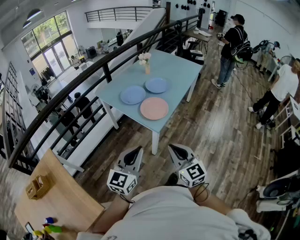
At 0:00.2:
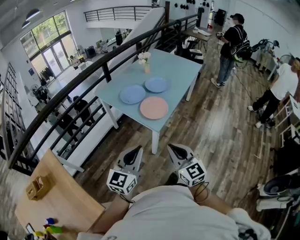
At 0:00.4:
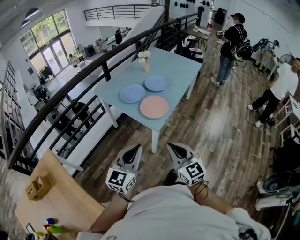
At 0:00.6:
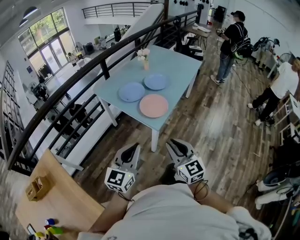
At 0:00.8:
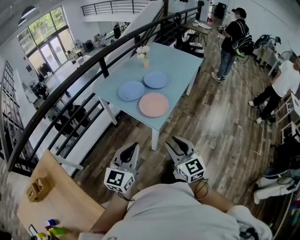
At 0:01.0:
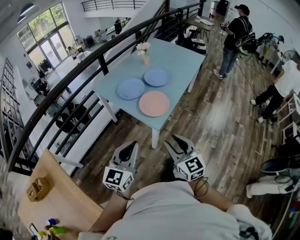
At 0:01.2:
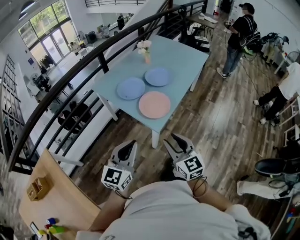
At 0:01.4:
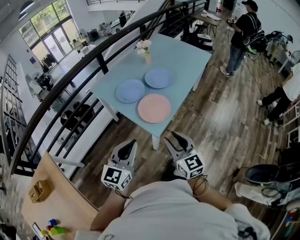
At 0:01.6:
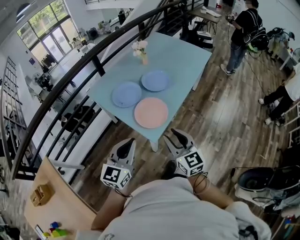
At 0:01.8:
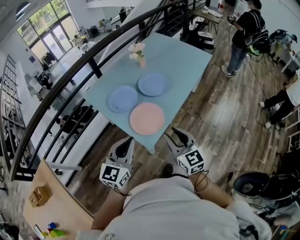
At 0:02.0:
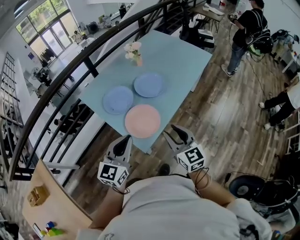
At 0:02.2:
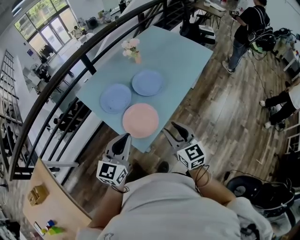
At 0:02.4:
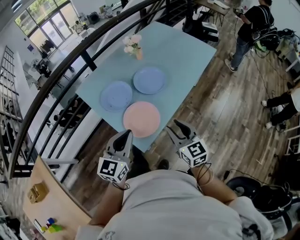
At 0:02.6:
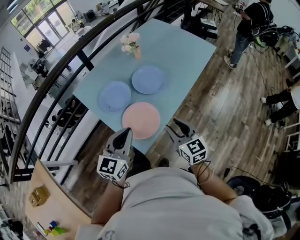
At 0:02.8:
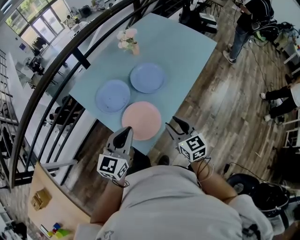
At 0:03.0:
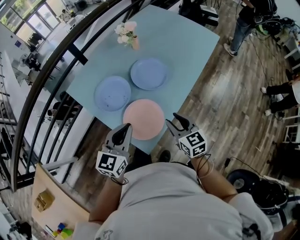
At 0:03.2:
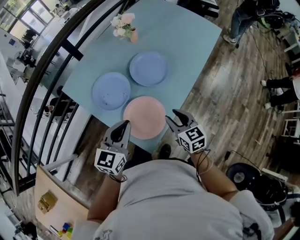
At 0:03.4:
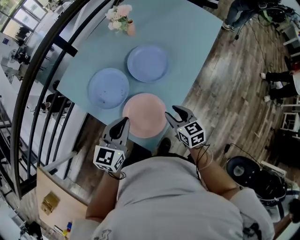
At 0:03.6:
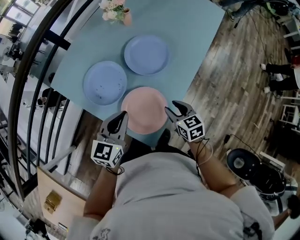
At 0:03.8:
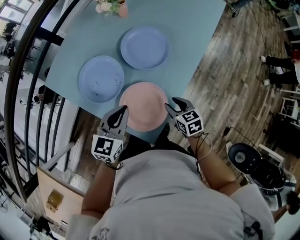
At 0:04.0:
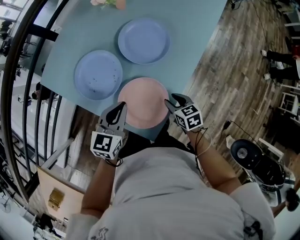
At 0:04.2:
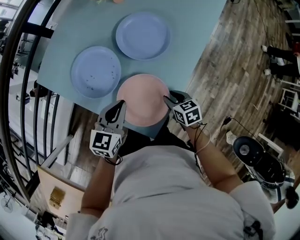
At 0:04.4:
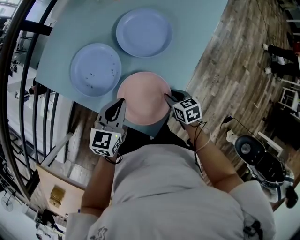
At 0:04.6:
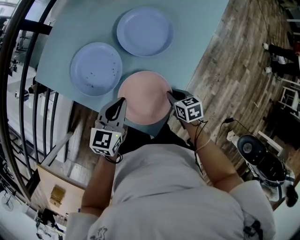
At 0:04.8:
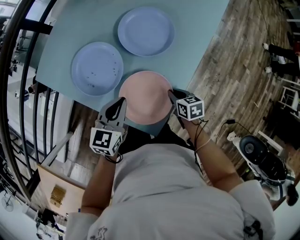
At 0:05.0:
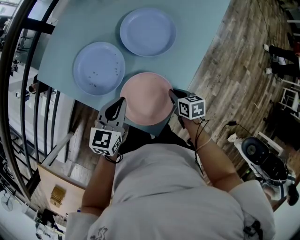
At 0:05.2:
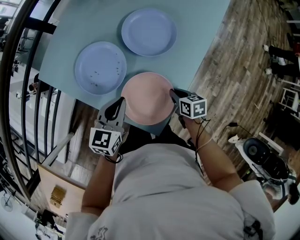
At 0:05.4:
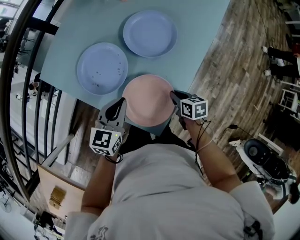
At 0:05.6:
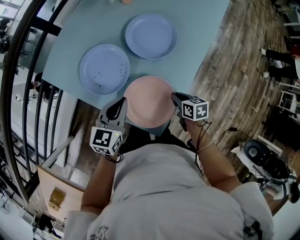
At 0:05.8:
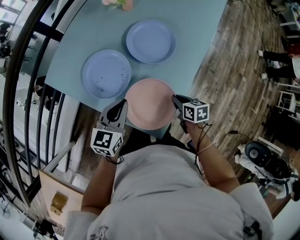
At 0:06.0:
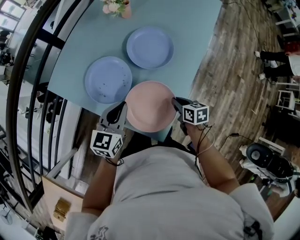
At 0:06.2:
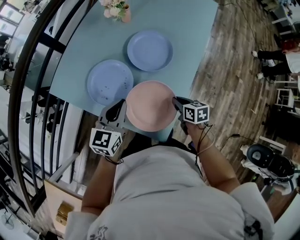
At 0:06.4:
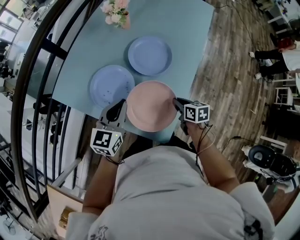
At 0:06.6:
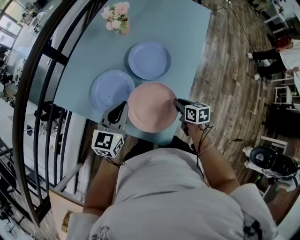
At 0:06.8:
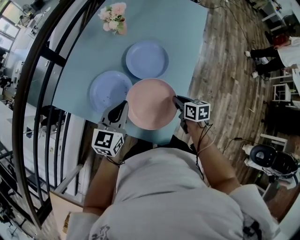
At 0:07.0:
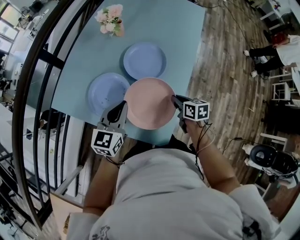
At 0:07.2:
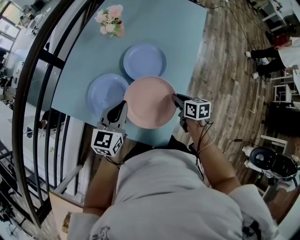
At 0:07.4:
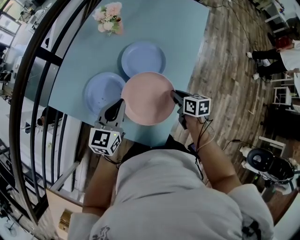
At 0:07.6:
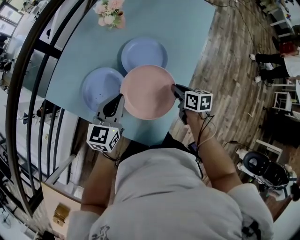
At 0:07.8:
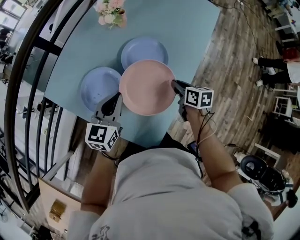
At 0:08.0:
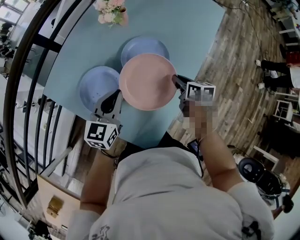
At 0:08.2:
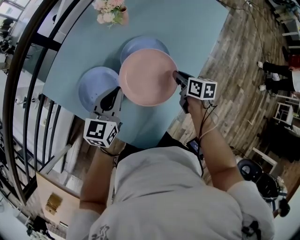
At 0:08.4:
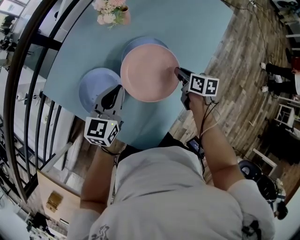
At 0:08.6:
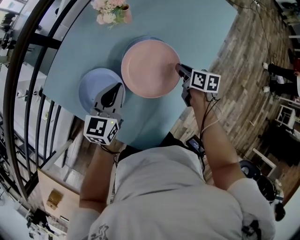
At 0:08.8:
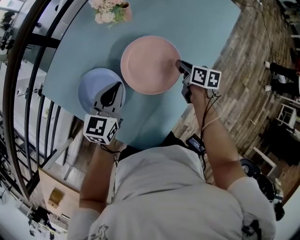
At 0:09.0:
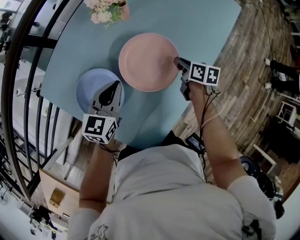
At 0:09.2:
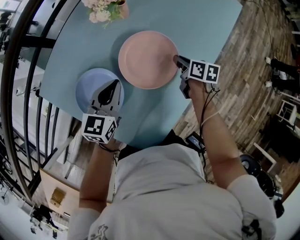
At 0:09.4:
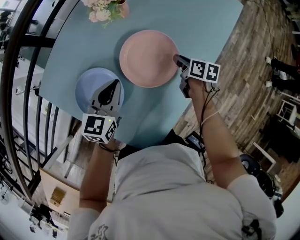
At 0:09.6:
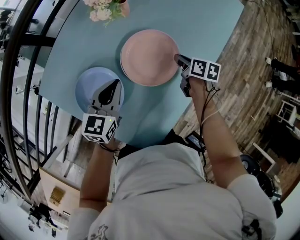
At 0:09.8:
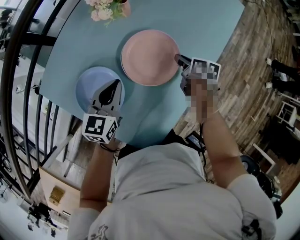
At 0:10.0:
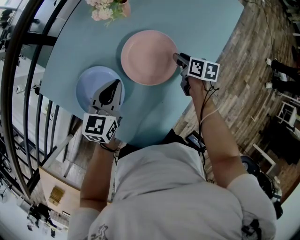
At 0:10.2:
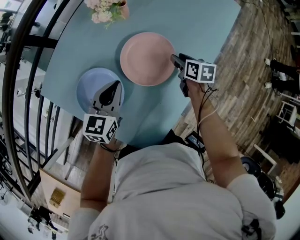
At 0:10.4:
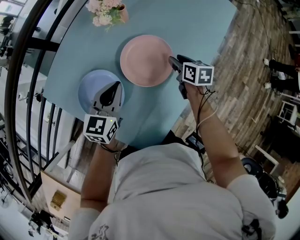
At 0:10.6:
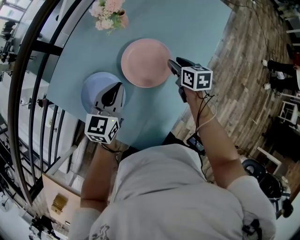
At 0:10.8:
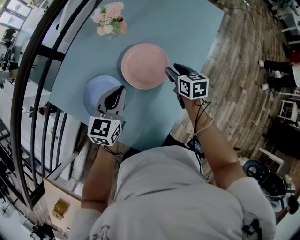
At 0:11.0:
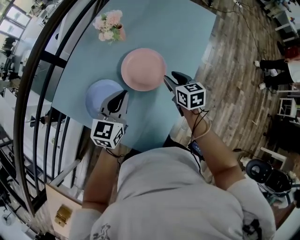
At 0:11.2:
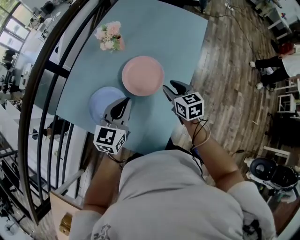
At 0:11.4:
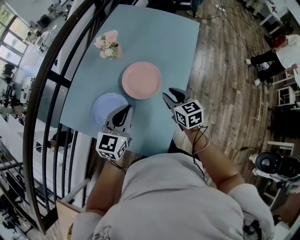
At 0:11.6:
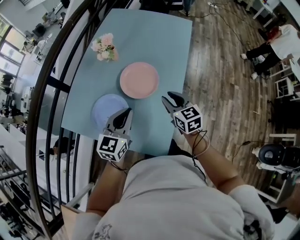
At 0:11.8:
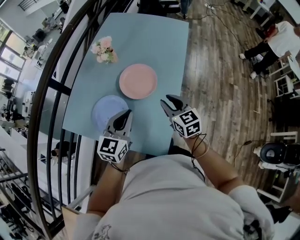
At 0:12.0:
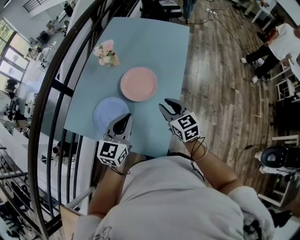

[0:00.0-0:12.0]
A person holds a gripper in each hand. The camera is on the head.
0:00.0 to 0:01.6: Both grippers travel together forward, some 20 cm. The right gripper opens its fingers.
0:01.6 to 0:03.0: The left gripper travels forward by about 25 cm; the right gripper moves forward and downward, roughly 25 cm.
0:03.0 to 0:04.4: The left gripper moves downward and forward, roughly 20 cm, and swivels roughly 20 degrees; the right gripper shifts some 25 cm downward, and turns by roughly 40 degrees.
0:04.4 to 0:06.0: The grippers both shift upward by roughly 5 cm. The right gripper closes up.
0:06.0 to 0:07.6: The right gripper is displaced forward and upward by about 10 cm, while the left gripper travels forward by roughly 5 cm.
0:07.6 to 0:09.0: The right gripper is displaced forward by some 15 cm; the left gripper moves forward and downward, approximately 10 cm.
0:09.0 to 0:10.4: The right gripper opens its fingers.
0:10.4 to 0:12.0: The right gripper travels backward and upward by roughly 30 cm, and swivels roughly 30 degrees. The left gripper is displaced backward and upward by some 20 cm, and changes its angle by approximately 20 degrees.

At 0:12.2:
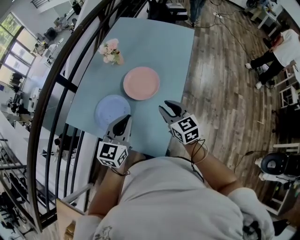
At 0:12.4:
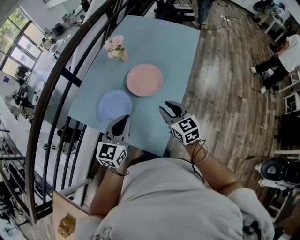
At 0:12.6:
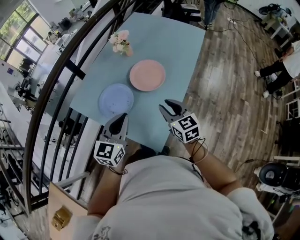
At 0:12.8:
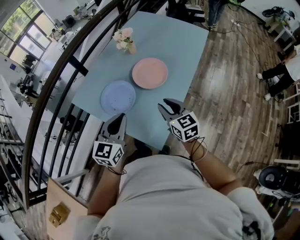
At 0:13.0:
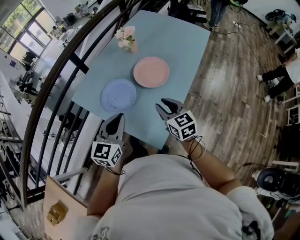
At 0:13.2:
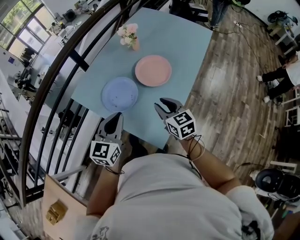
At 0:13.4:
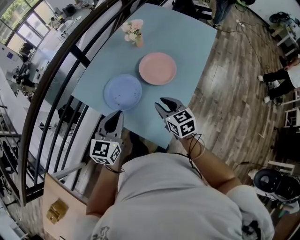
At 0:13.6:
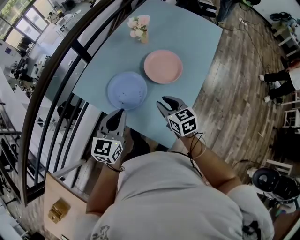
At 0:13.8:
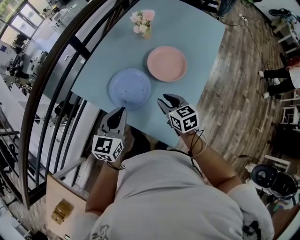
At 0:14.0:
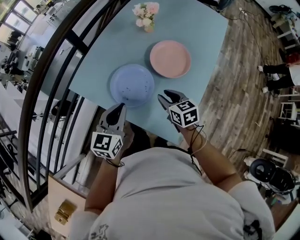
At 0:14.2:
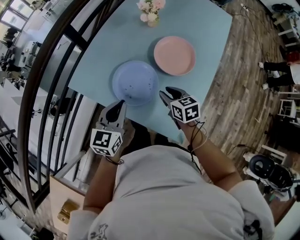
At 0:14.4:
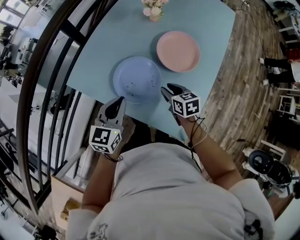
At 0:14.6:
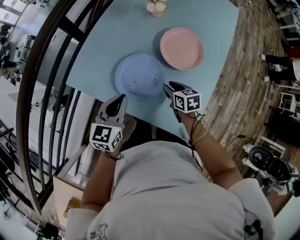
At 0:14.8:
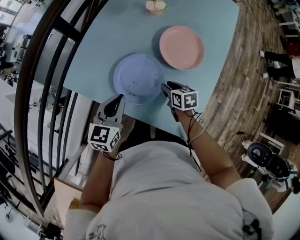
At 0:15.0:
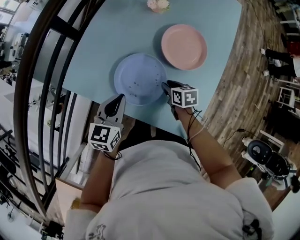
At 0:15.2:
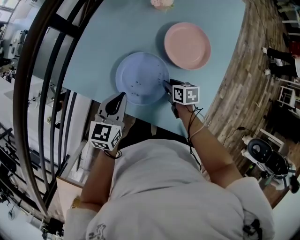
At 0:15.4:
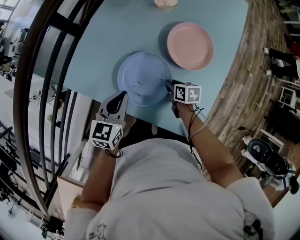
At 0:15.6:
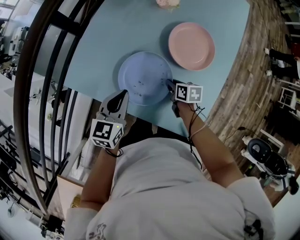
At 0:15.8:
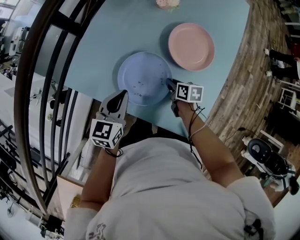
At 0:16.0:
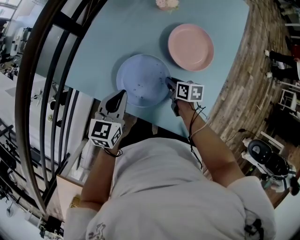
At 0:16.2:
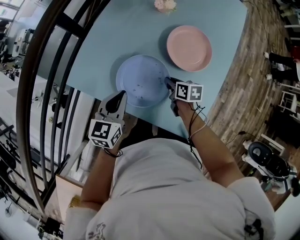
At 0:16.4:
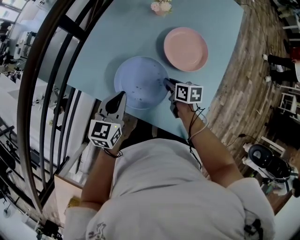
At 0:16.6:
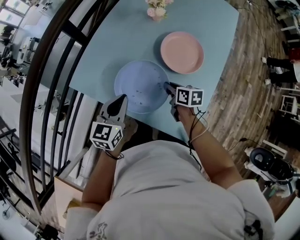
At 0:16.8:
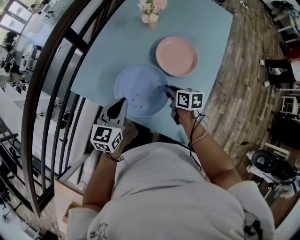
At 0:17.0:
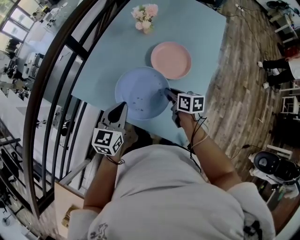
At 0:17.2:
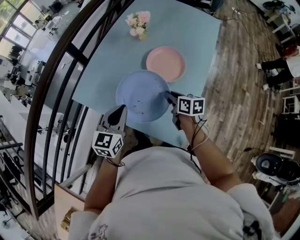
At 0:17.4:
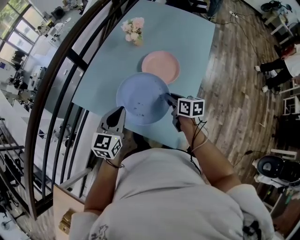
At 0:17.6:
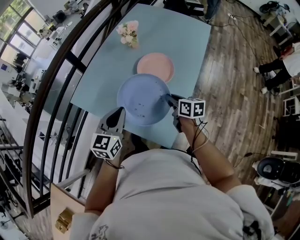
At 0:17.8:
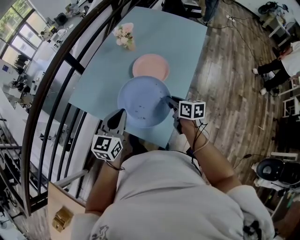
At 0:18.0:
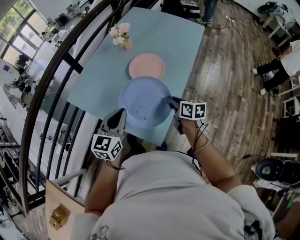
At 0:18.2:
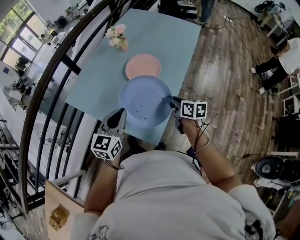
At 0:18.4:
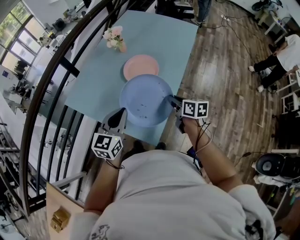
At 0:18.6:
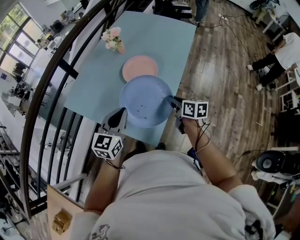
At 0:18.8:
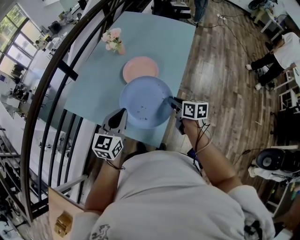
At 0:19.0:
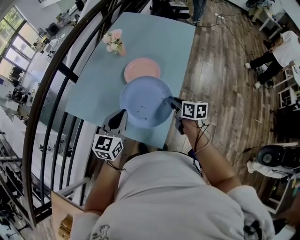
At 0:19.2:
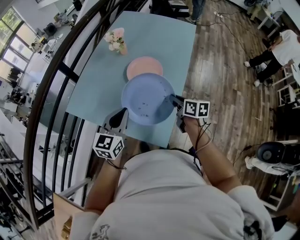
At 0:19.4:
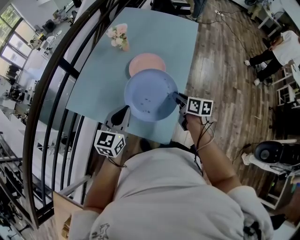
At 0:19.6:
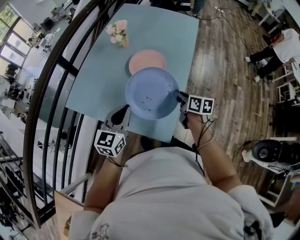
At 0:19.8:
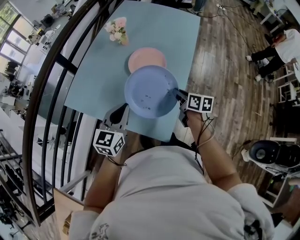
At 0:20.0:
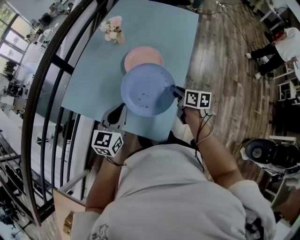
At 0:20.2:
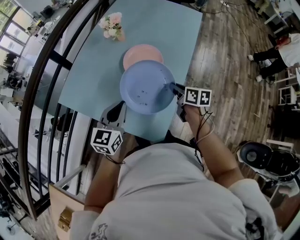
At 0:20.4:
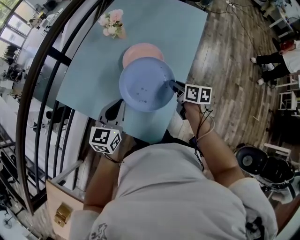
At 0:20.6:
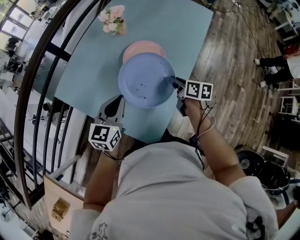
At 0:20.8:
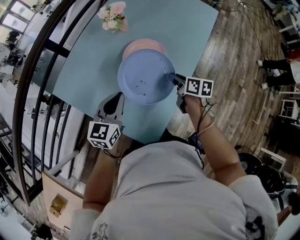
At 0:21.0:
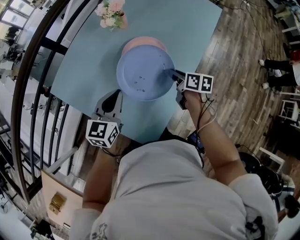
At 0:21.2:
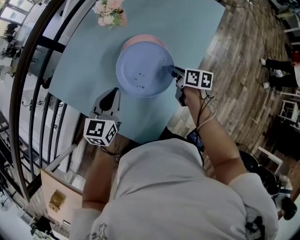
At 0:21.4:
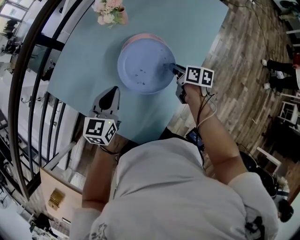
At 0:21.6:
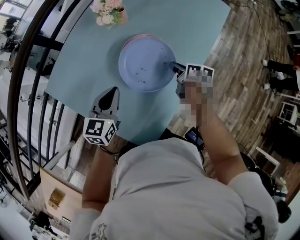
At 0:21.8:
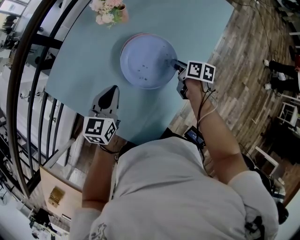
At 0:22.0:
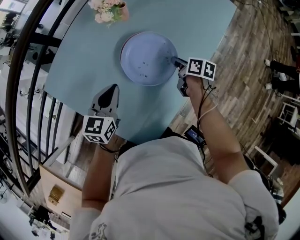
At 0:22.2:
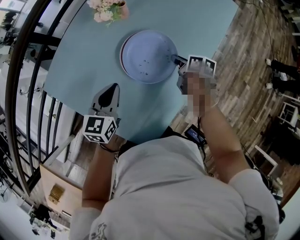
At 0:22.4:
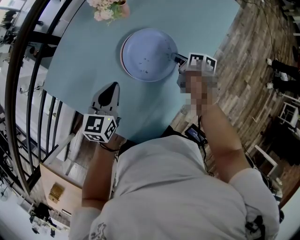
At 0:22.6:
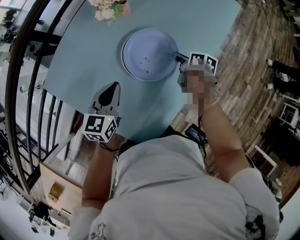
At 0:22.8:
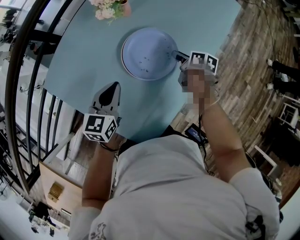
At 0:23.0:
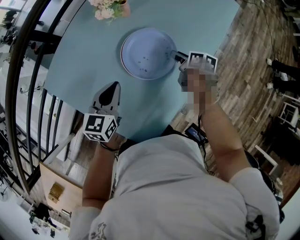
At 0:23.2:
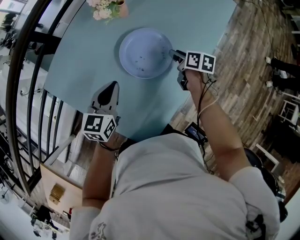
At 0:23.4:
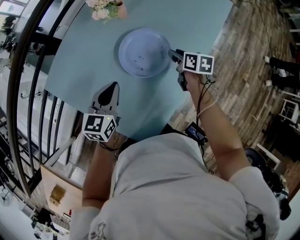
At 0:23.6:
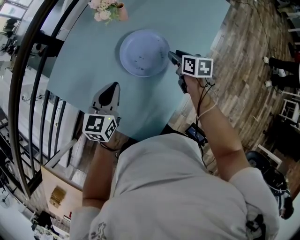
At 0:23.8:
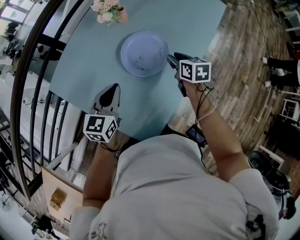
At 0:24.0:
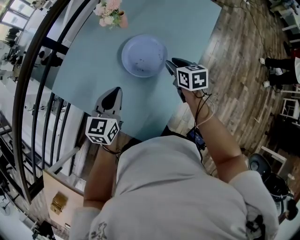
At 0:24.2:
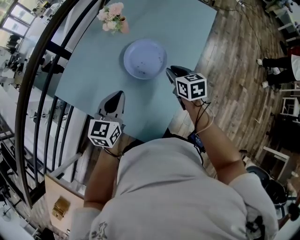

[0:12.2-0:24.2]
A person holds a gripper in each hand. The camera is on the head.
0:12.2 to 0:13.8: The right gripper goes roughly 15 cm to the left and downward. Meanwhile the left gripper goes some 15 cm to the left.
0:13.8 to 0:15.2: The right gripper travels downward by about 20 cm, and rotates approximately 40 degrees; the left gripper travels downward, forward and to the left by roughly 15 cm.
0:15.2 to 0:16.6: The right gripper moves upward, some 5 cm, and closes up.
0:16.6 to 0:18.2: The right gripper is displaced to the right, upward and backward by about 30 cm. Meanwhile the left gripper travels to the right, backward and upward by about 25 cm.
0:18.2 to 0:19.8: The left gripper ends up about 5 cm from where it was.
0:19.8 to 0:21.2: Both grippers travel together forward and downward, roughly 15 cm.
0:21.2 to 0:22.6: The right gripper shifts about 10 cm forward and downward, while the left gripper moves some 5 cm.
0:22.6 to 0:24.2: The left gripper goes some 10 cm backward and upward. Meanwhile the right gripper shifts approximately 20 cm upward and backward, and changes its angle by roughly 40 degrees.
